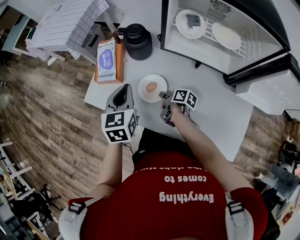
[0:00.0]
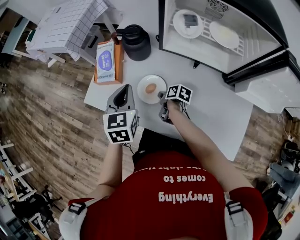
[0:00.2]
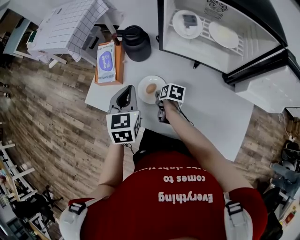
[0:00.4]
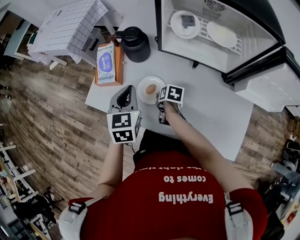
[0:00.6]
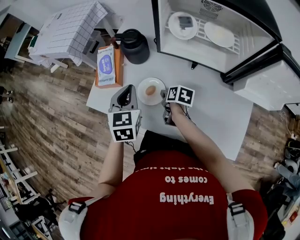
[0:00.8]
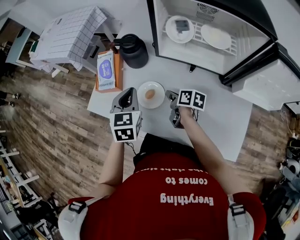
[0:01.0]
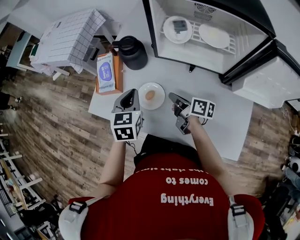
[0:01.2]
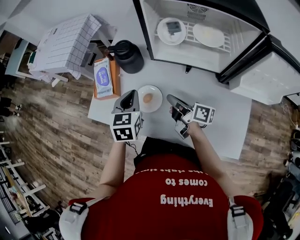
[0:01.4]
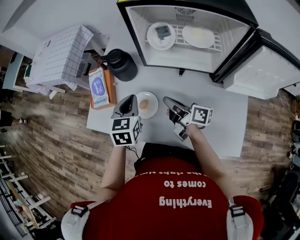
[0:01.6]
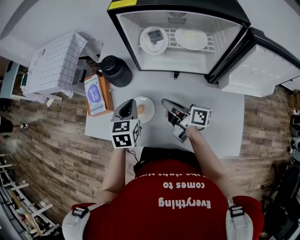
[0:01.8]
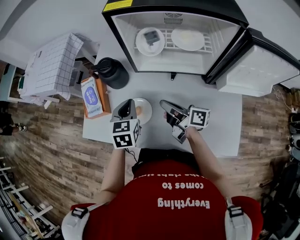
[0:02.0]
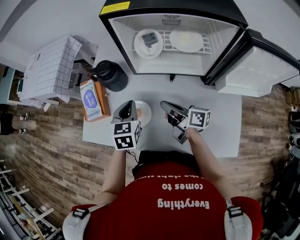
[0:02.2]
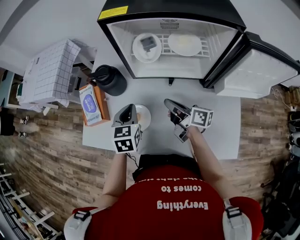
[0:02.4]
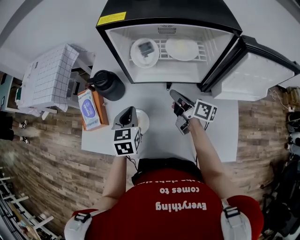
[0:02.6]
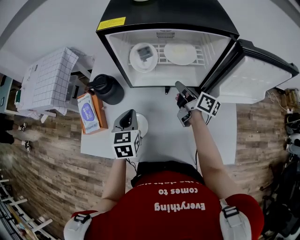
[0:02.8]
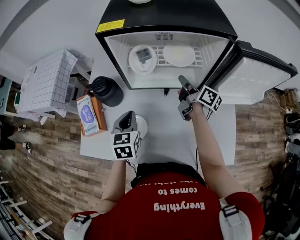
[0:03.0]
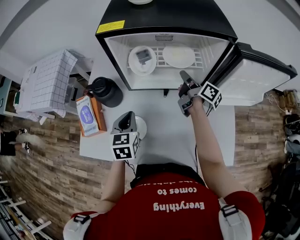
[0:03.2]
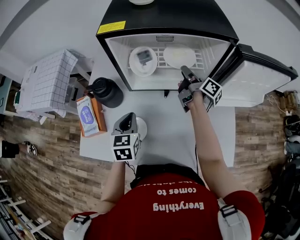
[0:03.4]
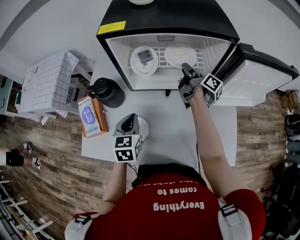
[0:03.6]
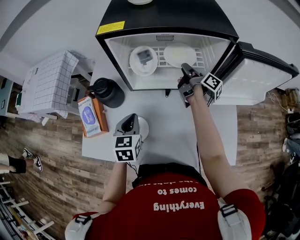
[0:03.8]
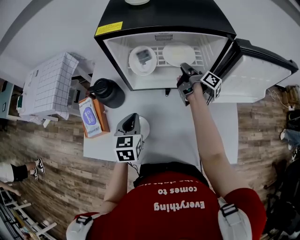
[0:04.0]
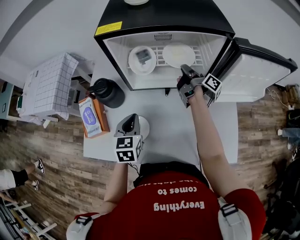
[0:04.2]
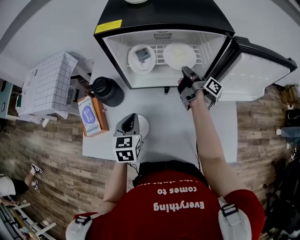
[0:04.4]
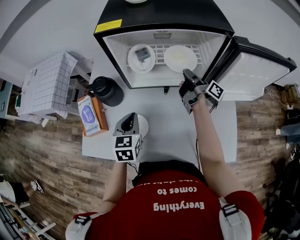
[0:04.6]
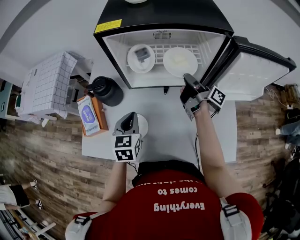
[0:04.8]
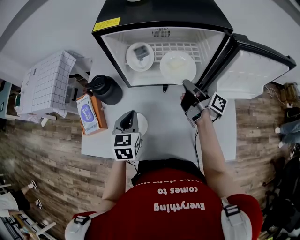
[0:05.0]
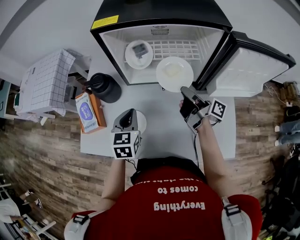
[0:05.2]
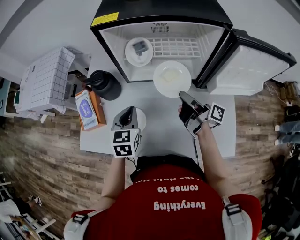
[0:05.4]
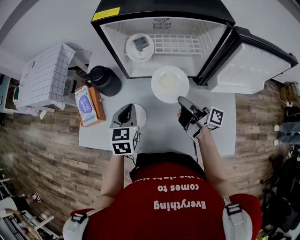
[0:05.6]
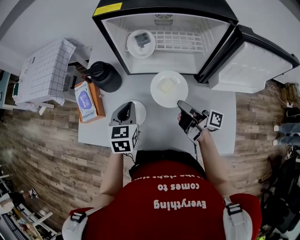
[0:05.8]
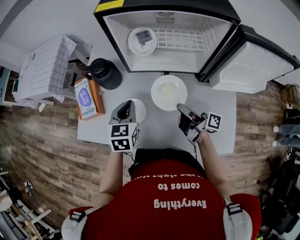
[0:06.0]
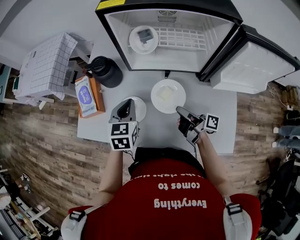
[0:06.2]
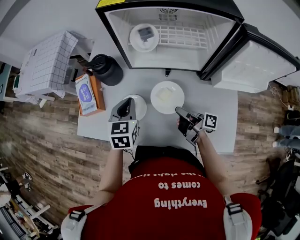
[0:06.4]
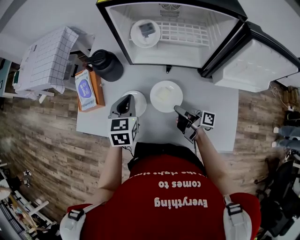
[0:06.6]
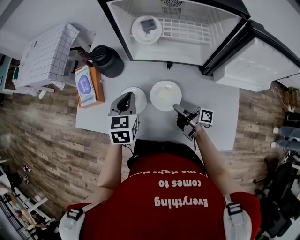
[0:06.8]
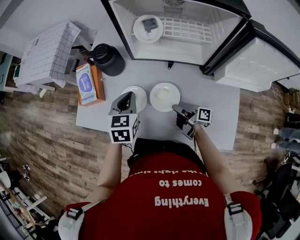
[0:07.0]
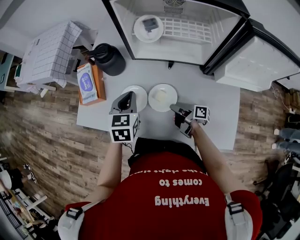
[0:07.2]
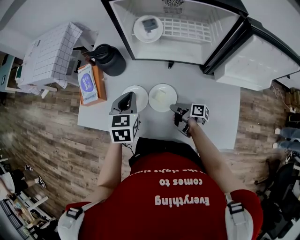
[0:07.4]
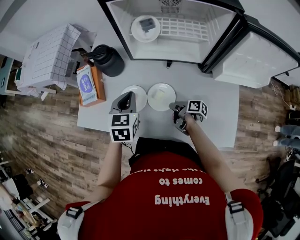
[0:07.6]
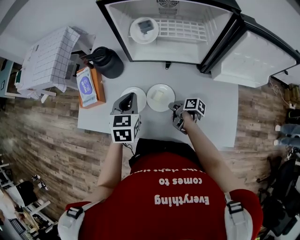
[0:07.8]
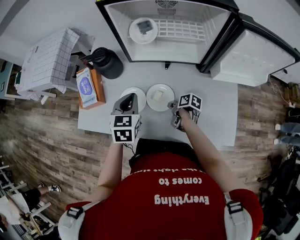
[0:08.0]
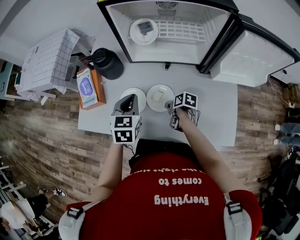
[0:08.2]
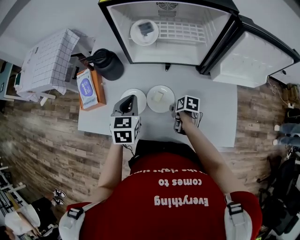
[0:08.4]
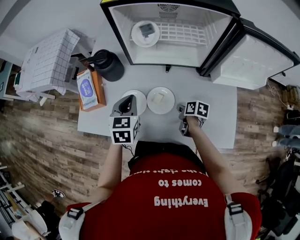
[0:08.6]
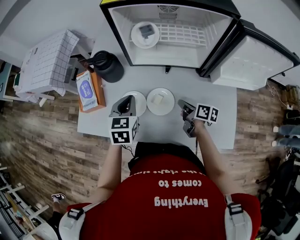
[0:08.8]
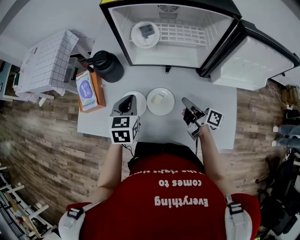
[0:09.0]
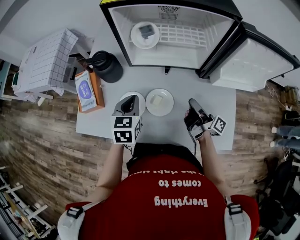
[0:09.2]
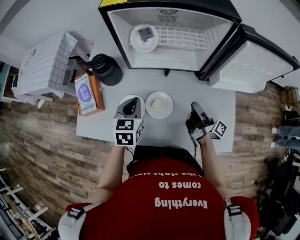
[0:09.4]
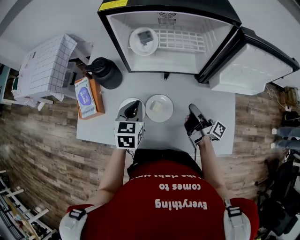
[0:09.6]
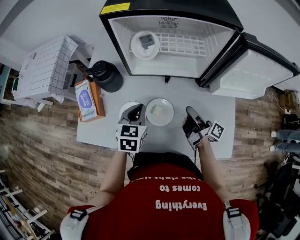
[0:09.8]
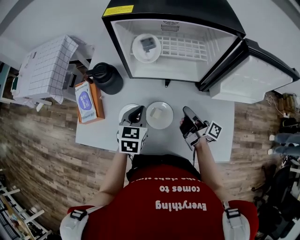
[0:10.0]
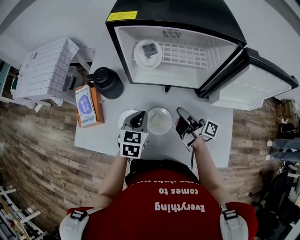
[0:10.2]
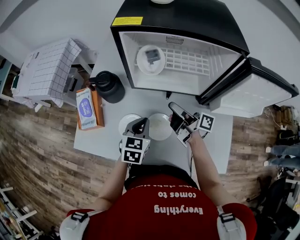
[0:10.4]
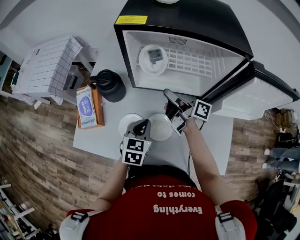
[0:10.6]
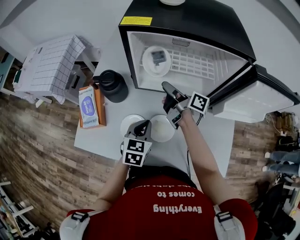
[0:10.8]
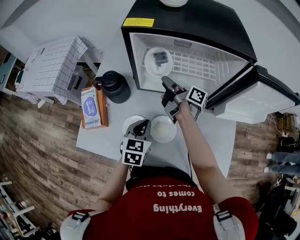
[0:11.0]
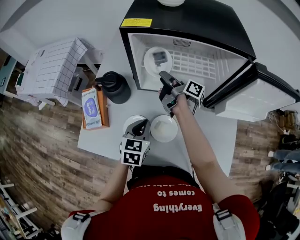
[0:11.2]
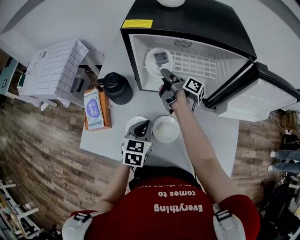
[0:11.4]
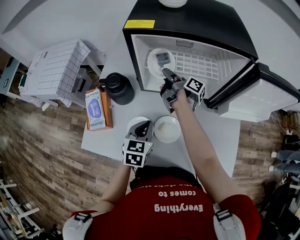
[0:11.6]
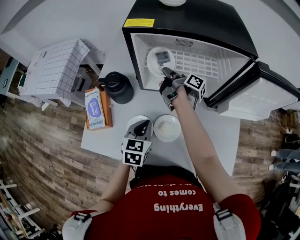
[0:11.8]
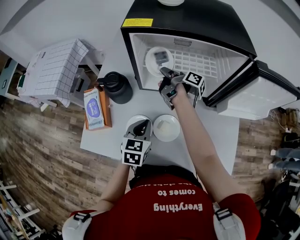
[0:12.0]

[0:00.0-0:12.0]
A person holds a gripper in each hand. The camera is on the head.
0:00.0 to 0:01.6: The left gripper changes place by some 10 cm.
0:01.6 to 0:03.0: The left gripper moves some 5 cm.
0:09.0 to 0:10.4: The left gripper changes place by approximately 5 cm.

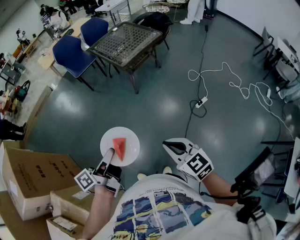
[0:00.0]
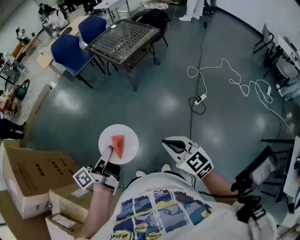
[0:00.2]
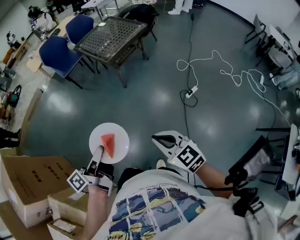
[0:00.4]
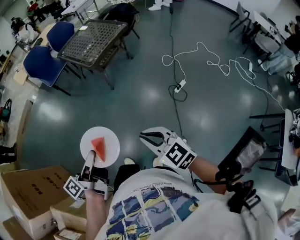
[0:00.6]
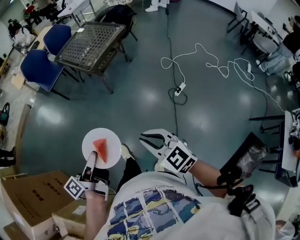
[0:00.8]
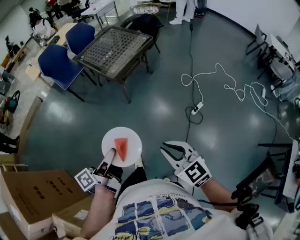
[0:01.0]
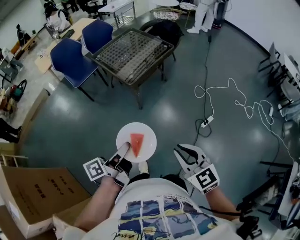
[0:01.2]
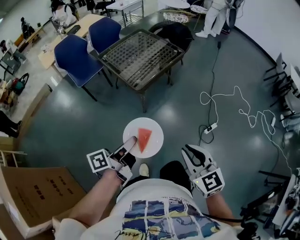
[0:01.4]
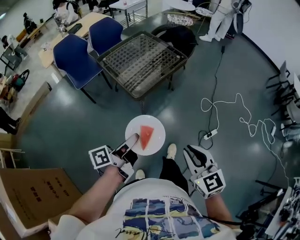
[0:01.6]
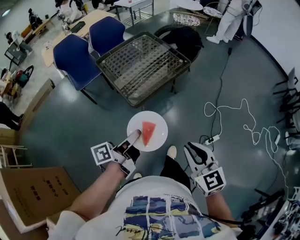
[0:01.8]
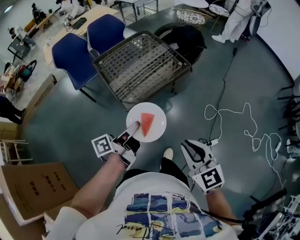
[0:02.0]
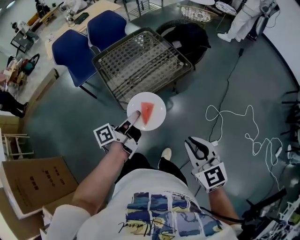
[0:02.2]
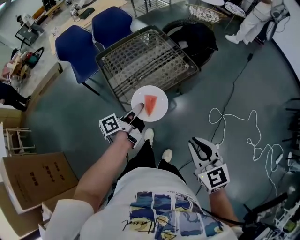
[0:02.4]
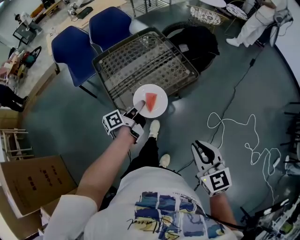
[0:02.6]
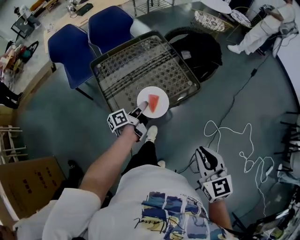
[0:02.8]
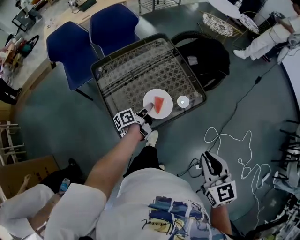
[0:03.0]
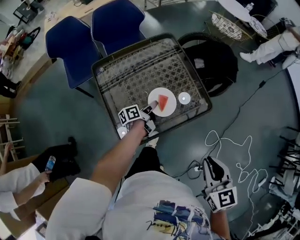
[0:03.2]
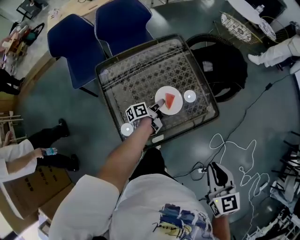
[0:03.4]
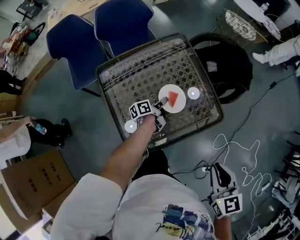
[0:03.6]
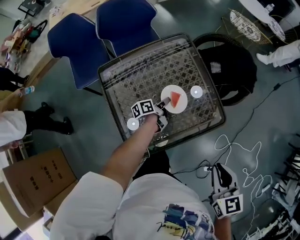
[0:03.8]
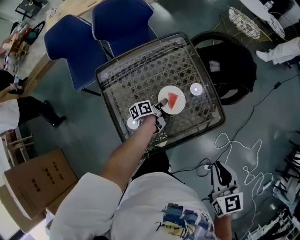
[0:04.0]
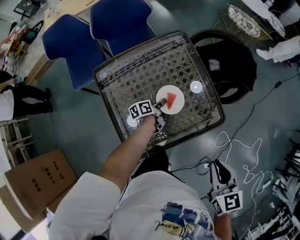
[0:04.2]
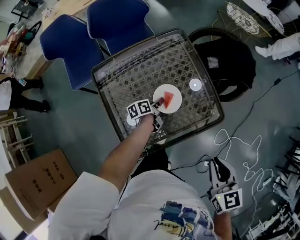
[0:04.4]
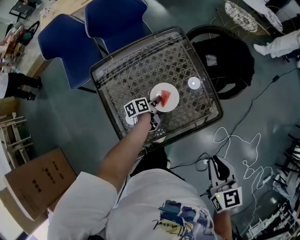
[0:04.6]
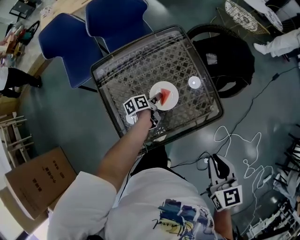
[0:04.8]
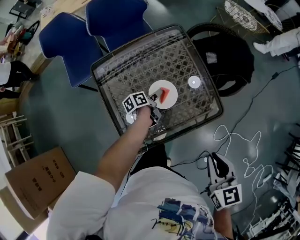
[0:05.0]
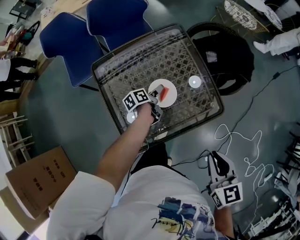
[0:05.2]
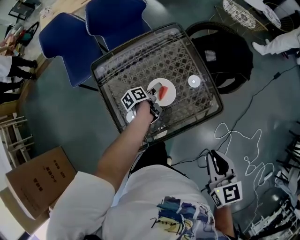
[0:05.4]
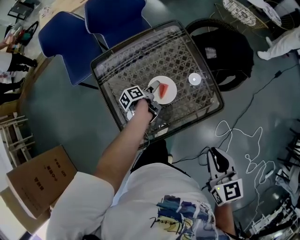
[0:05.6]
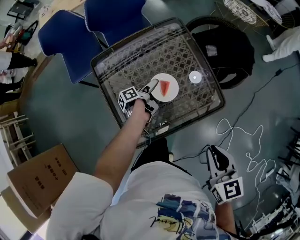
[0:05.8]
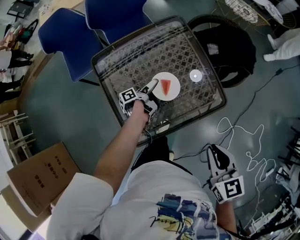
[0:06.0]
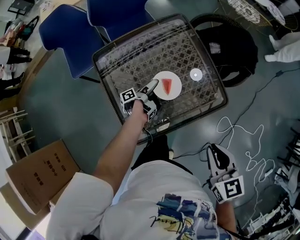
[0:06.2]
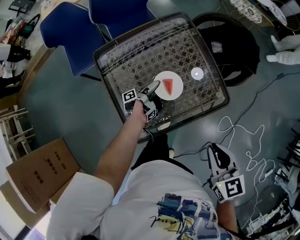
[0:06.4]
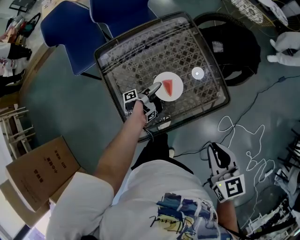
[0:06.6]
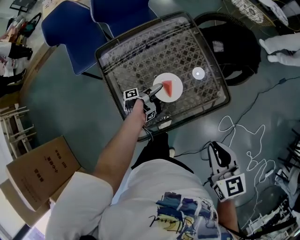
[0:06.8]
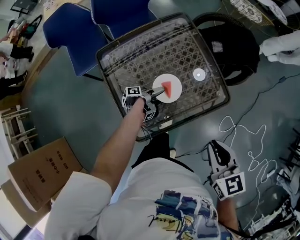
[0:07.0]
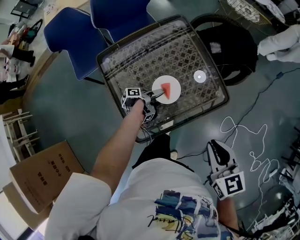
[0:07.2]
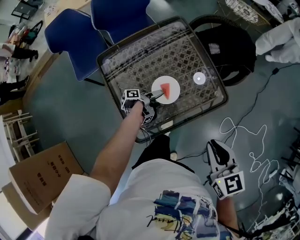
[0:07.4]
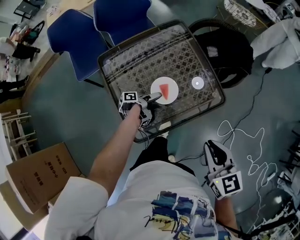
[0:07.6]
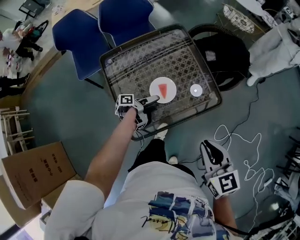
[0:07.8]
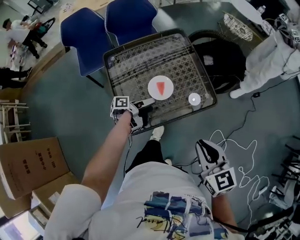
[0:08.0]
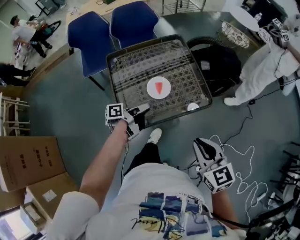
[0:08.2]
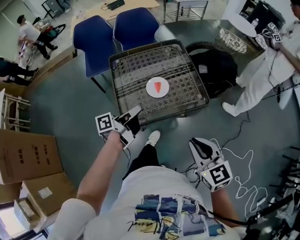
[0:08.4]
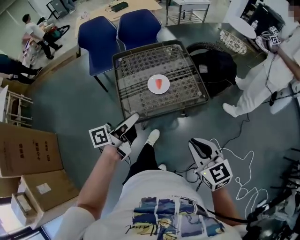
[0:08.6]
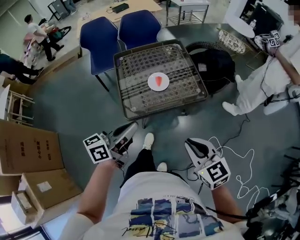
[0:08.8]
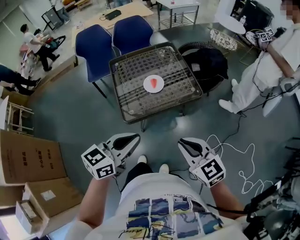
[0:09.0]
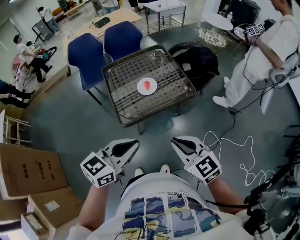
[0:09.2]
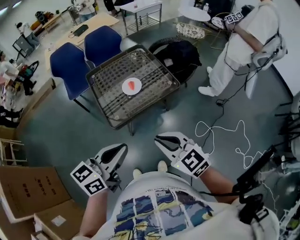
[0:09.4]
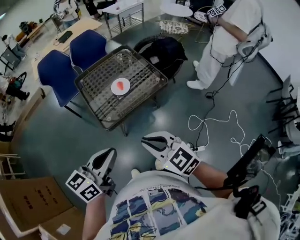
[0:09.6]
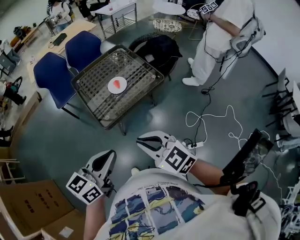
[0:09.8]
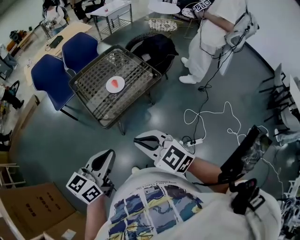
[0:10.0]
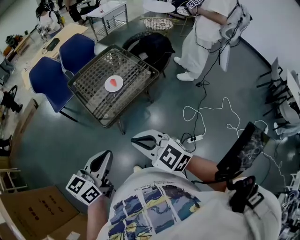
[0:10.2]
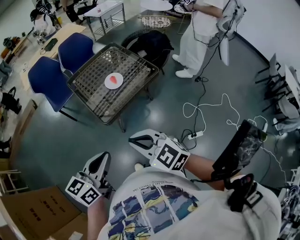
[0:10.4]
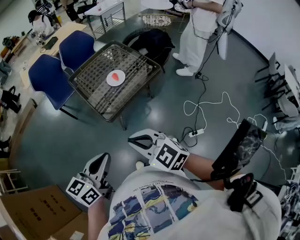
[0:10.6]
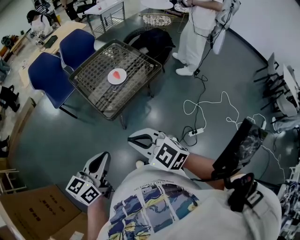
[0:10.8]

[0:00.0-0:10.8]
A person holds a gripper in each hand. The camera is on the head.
0:00.0 to 0:01.6: The right gripper moves some 35 cm.
0:01.6 to 0:03.0: The right gripper moves some 50 cm.
0:03.0 to 0:04.6: The right gripper shifts by some 15 cm.
0:07.8 to 0:09.2: The right gripper ends up about 20 cm from where it was, and rotates approximately 30 degrees.
0:09.2 to 0:10.8: The right gripper shifts by some 25 cm.

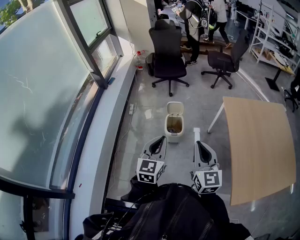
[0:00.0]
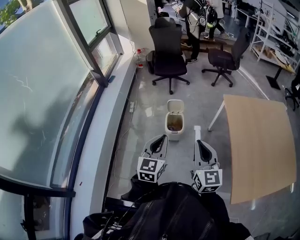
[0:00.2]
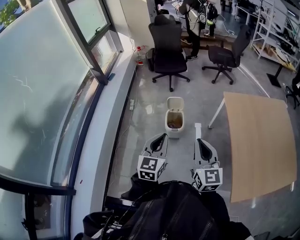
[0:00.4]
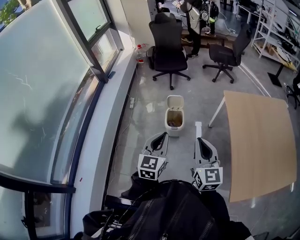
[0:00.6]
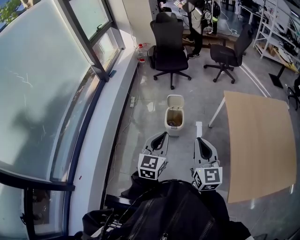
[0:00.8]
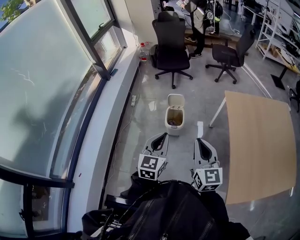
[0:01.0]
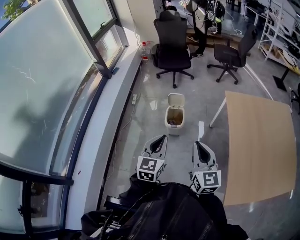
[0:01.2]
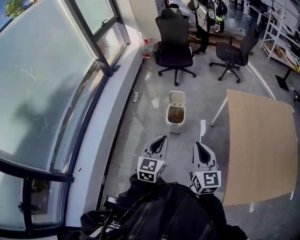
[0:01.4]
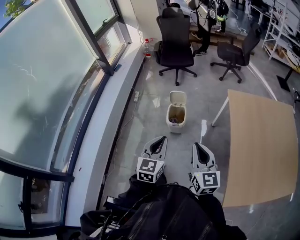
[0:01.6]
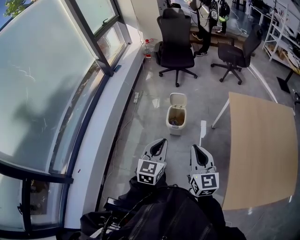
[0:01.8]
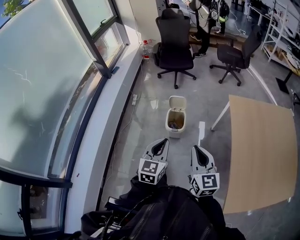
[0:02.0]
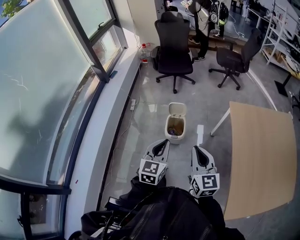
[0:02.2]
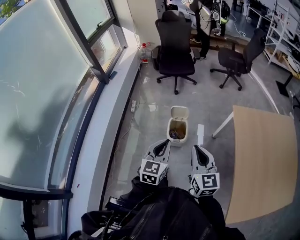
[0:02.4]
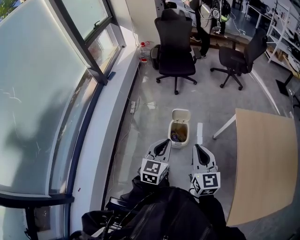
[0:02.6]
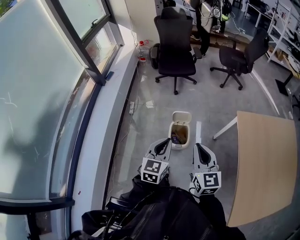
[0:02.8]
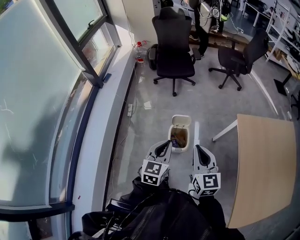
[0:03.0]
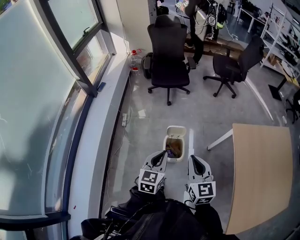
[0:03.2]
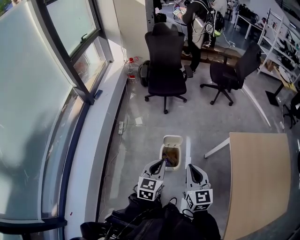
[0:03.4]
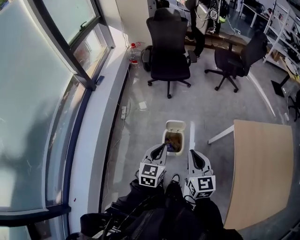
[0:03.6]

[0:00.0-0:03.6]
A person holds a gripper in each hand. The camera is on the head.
0:00.0 to 0:01.8: The left gripper heads downward and to the right, covering approximately 10 cm, while the right gripper goes approximately 5 cm downward.
0:01.8 to 0:03.6: Both grippers move forward, roughly 30 cm.
